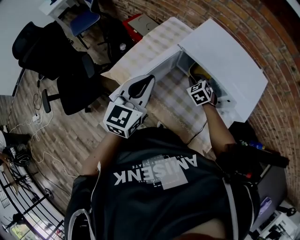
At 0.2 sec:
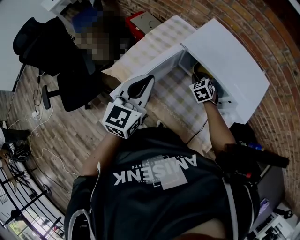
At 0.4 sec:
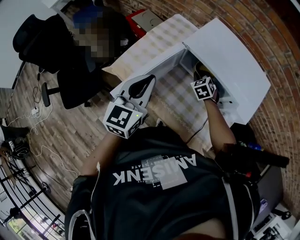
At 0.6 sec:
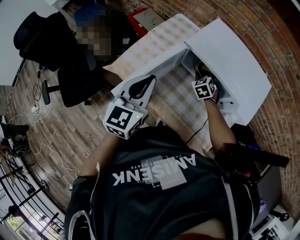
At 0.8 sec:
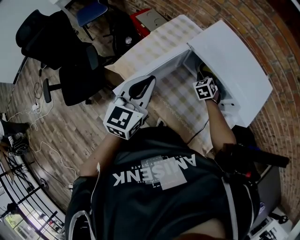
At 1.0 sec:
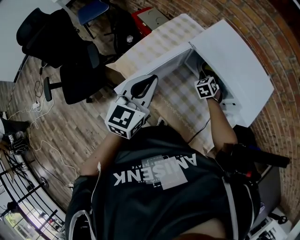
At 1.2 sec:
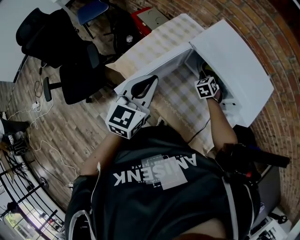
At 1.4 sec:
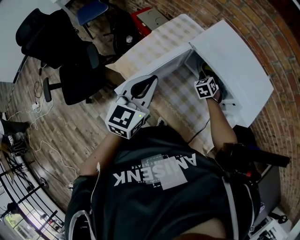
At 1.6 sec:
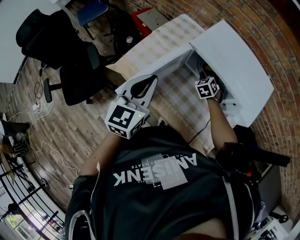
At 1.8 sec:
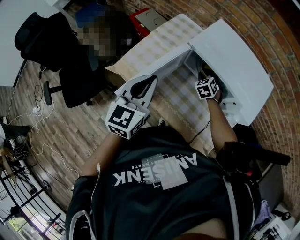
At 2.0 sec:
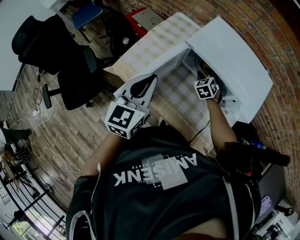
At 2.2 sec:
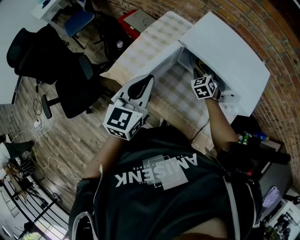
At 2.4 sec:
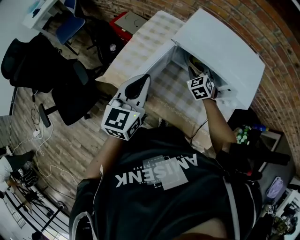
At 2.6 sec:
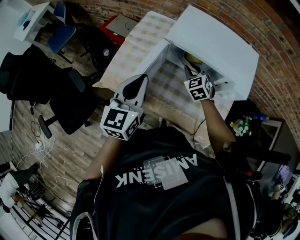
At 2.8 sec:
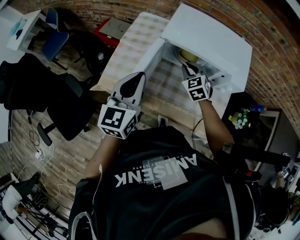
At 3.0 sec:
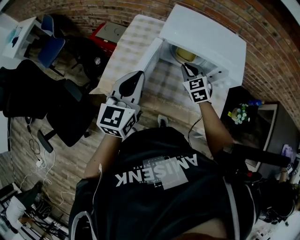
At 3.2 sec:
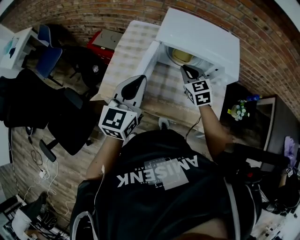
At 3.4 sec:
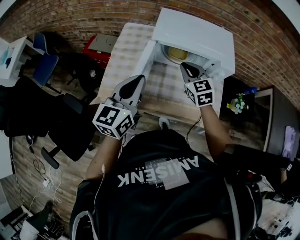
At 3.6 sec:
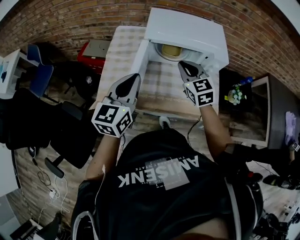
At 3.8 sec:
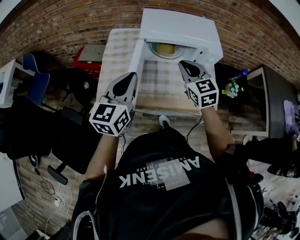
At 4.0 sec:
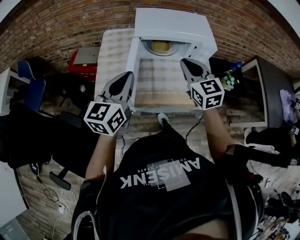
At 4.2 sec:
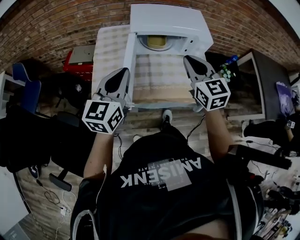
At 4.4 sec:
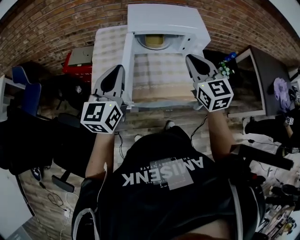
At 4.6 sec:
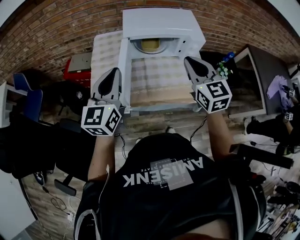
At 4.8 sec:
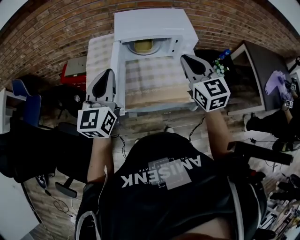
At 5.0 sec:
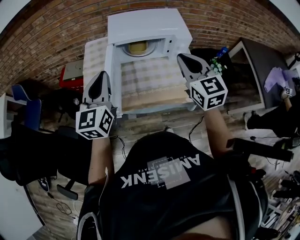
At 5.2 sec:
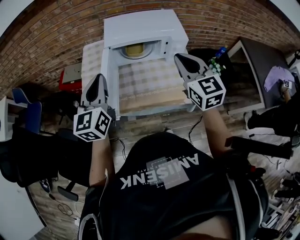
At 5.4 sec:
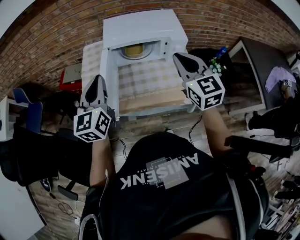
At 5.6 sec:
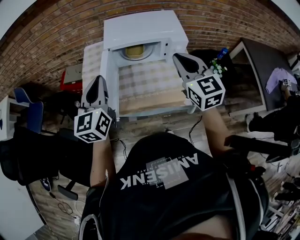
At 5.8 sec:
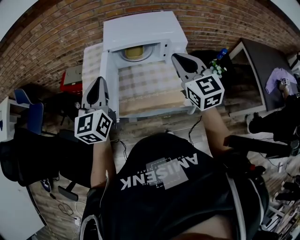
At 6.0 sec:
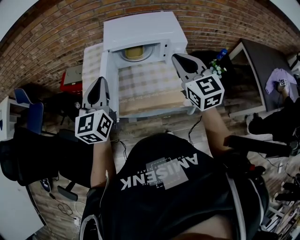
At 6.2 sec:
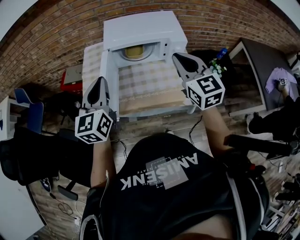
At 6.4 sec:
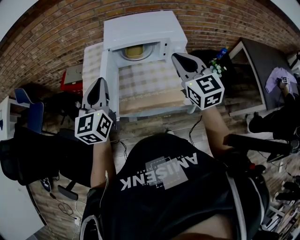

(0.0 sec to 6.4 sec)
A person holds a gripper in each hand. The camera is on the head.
0.0 sec - 1.6 sec: The right gripper ends up some 5 cm from where it was.
1.6 sec - 3.2 sec: The right gripper moves upward and backward, approximately 20 cm, changes its angle by approximately 30 degrees, and opens and closes again. Meanwhile the left gripper changes its angle by approximately 20 degrees.
3.2 sec - 4.8 sec: The left gripper moves upward, some 5 cm; the right gripper shifts roughly 25 cm upward, backward and to the right, and turns by some 30 degrees.
4.8 sec - 6.4 sec: There are only small adjustments of the grippers.

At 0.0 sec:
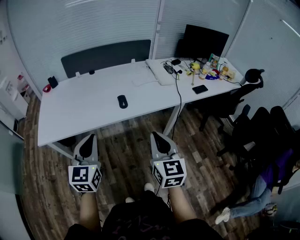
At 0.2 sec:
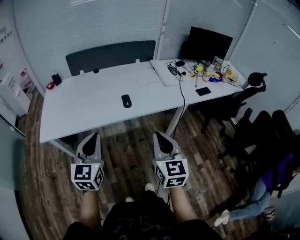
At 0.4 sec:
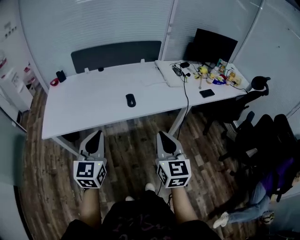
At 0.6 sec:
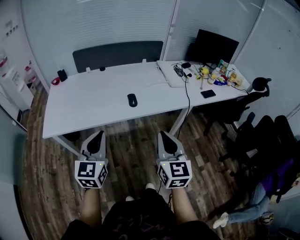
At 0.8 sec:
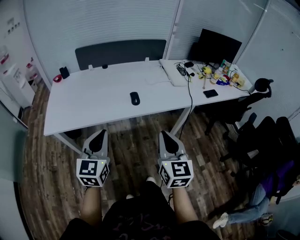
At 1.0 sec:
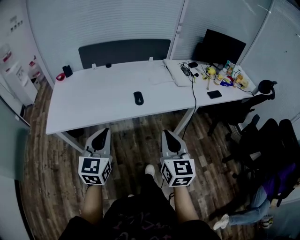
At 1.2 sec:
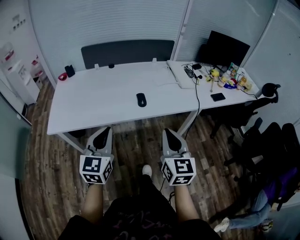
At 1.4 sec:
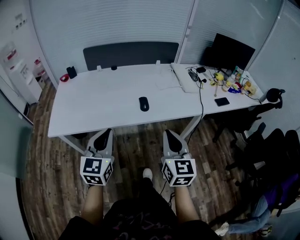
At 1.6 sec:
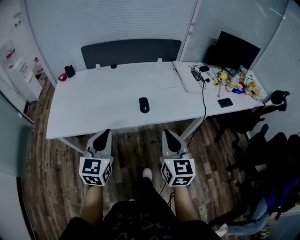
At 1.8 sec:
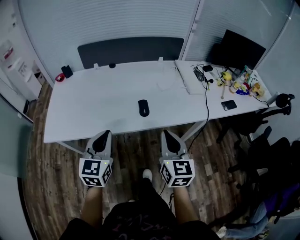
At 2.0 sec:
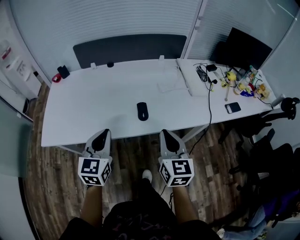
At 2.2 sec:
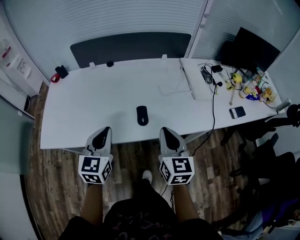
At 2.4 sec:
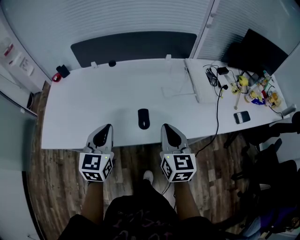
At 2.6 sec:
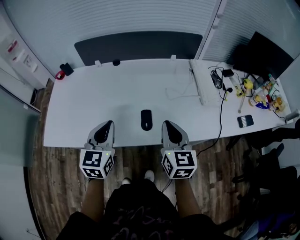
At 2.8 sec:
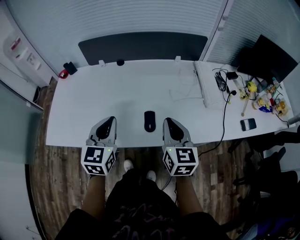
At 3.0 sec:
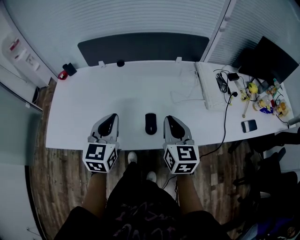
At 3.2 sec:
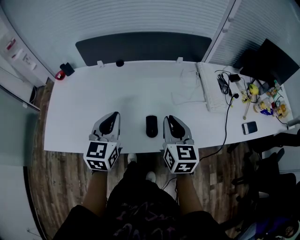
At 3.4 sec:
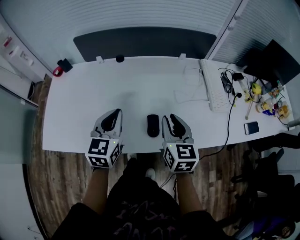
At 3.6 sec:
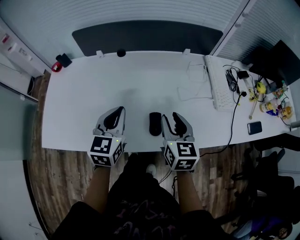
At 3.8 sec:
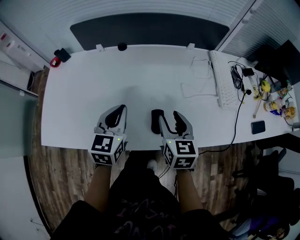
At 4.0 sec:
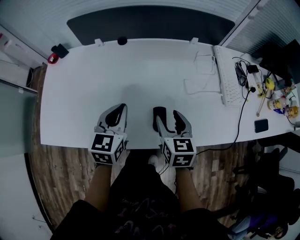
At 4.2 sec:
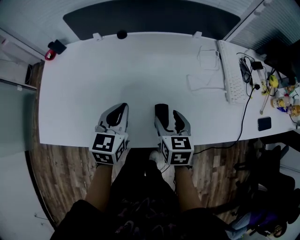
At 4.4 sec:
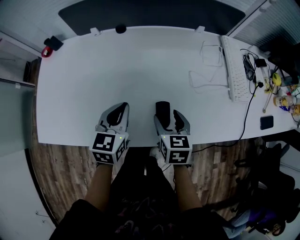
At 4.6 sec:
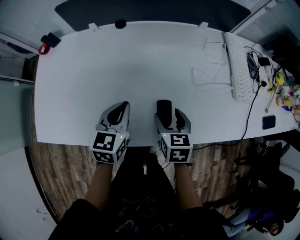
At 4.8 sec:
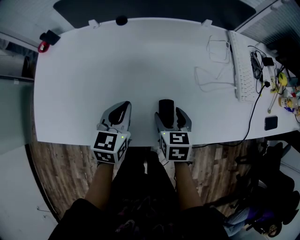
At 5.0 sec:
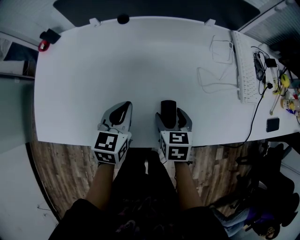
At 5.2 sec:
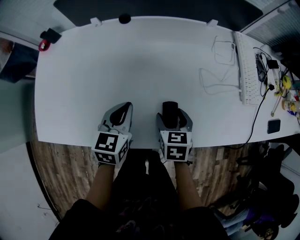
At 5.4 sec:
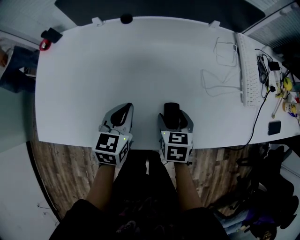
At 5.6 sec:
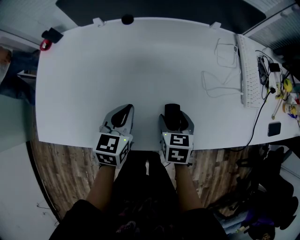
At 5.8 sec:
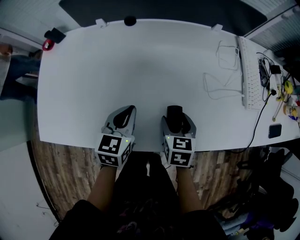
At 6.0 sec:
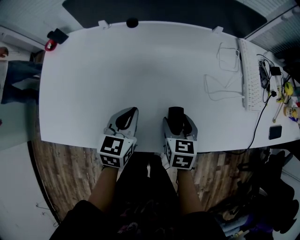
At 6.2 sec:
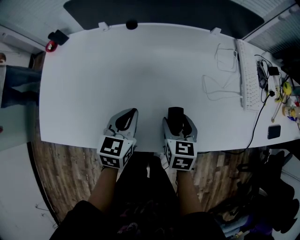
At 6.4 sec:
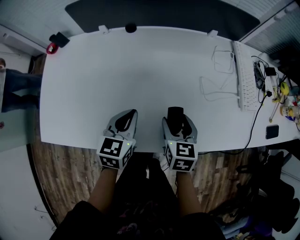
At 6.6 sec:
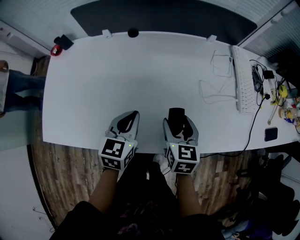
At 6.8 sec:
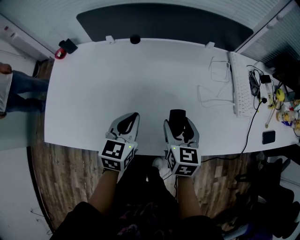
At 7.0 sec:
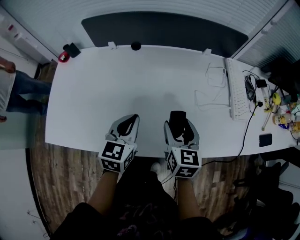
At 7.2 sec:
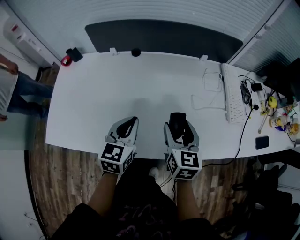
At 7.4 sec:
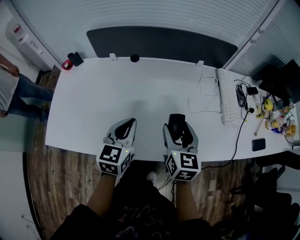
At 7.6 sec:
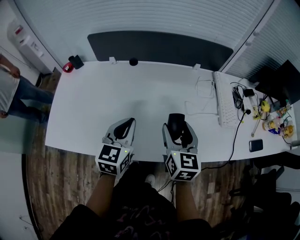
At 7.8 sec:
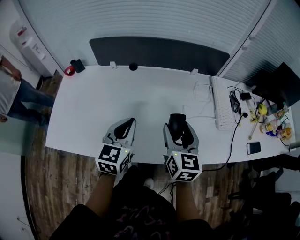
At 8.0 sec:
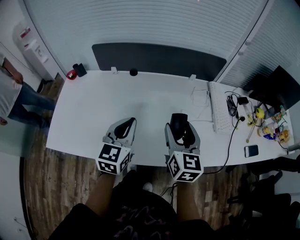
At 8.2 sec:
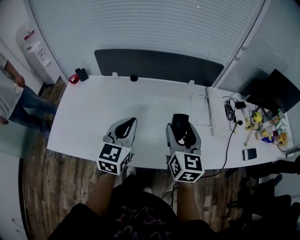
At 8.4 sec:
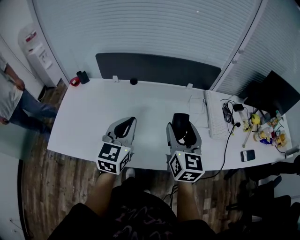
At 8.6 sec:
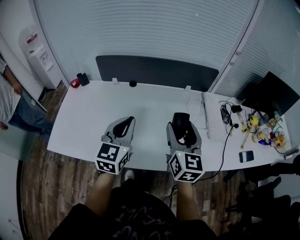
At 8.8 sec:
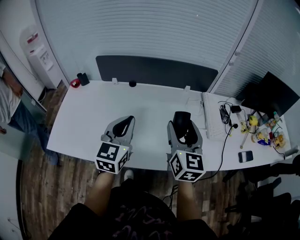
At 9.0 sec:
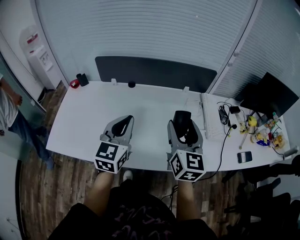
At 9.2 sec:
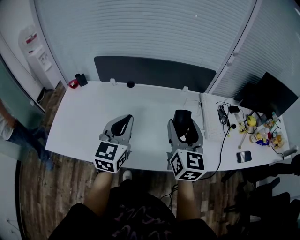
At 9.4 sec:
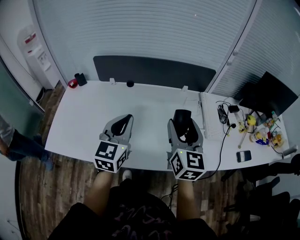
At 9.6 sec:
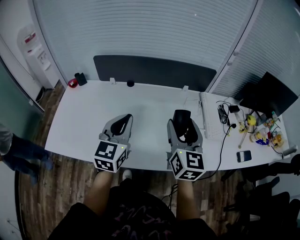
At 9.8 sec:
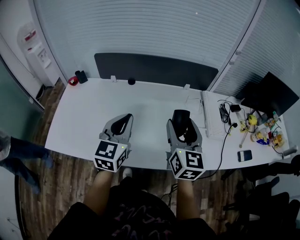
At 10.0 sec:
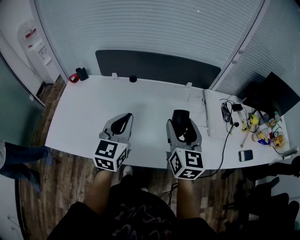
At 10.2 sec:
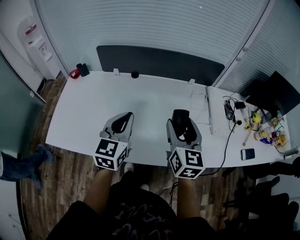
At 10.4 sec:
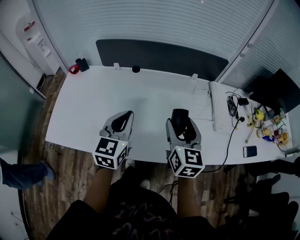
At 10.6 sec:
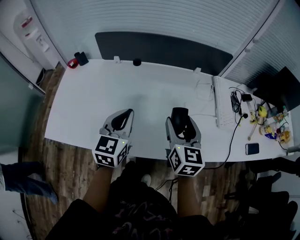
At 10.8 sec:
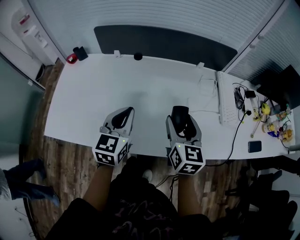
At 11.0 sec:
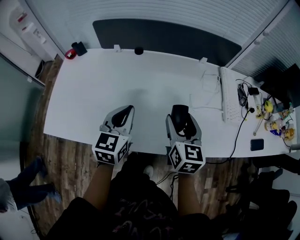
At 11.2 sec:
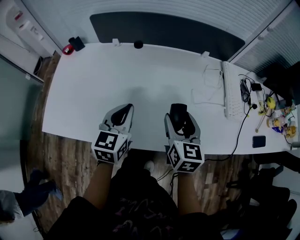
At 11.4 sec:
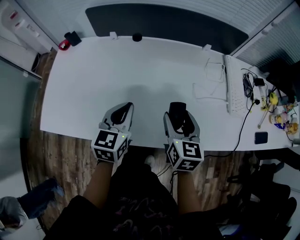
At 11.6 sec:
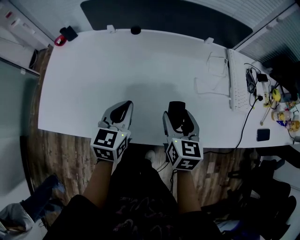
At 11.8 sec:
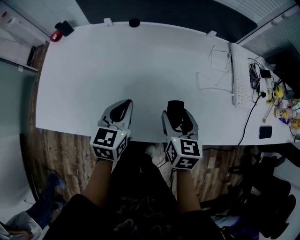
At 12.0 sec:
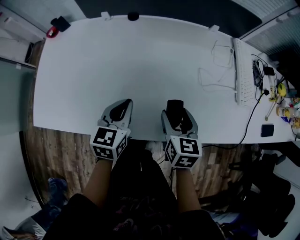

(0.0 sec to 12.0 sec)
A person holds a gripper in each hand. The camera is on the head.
0.0 sec - 1.6 sec: The grippers both shift forward by about 10 cm.
1.6 sec - 3.0 sec: Both grippers travel together forward, about 30 cm.
3.0 sec - 4.4 sec: The right gripper moves downward, approximately 20 cm, rotates about 30 degrees, and opens up. Meanwhile the left gripper goes some 15 cm downward and forward.
4.4 sec - 6.0 sec: The grippers make only small movements.
6.0 sec - 7.6 sec: Both grippers travel together upward, some 15 cm. The right gripper changes its angle by roughly 30 degrees.
7.6 sec - 9.0 sec: The grippers both shift upward by some 10 cm.
9.0 sec - 10.4 sec: Both grippers move downward, roughly 5 cm.
10.4 sec - 12.0 sec: The two grippers go roughly 20 cm downward. The left gripper changes its angle by roughly 20 degrees, while the right gripper changes its angle by approximately 30 degrees.

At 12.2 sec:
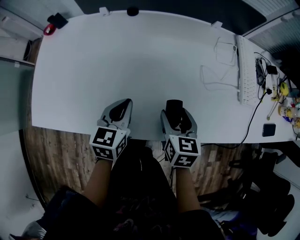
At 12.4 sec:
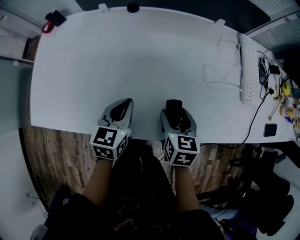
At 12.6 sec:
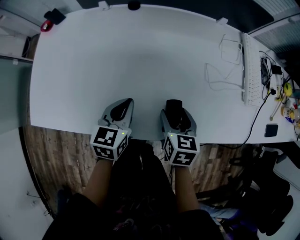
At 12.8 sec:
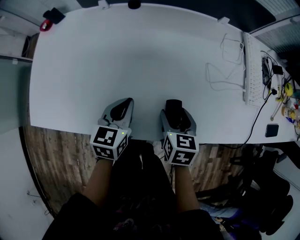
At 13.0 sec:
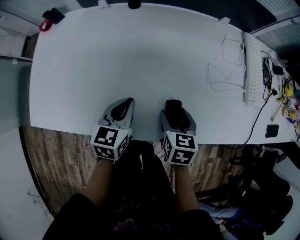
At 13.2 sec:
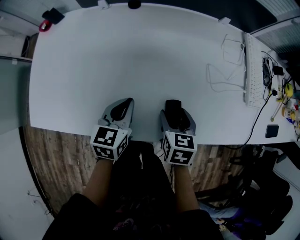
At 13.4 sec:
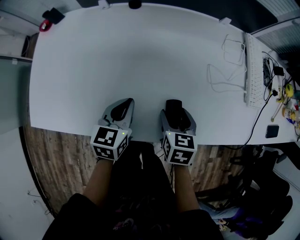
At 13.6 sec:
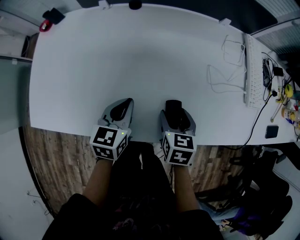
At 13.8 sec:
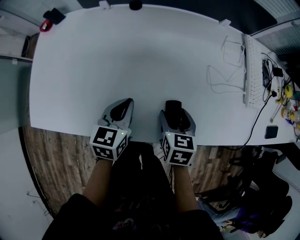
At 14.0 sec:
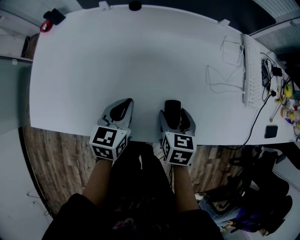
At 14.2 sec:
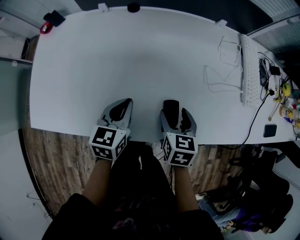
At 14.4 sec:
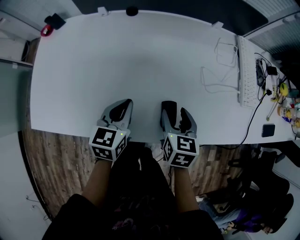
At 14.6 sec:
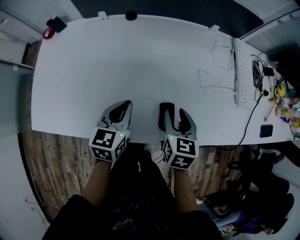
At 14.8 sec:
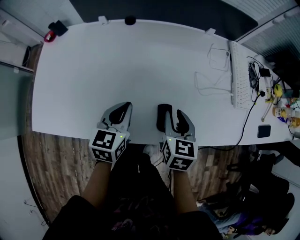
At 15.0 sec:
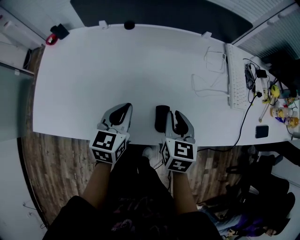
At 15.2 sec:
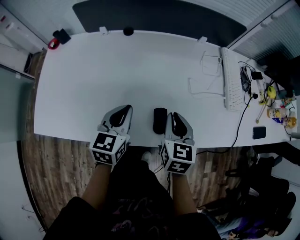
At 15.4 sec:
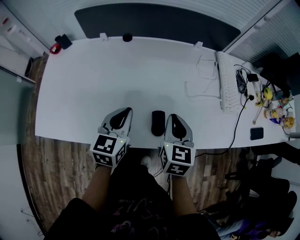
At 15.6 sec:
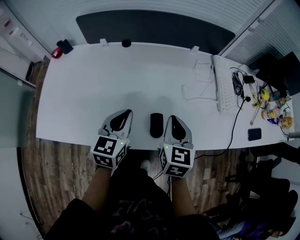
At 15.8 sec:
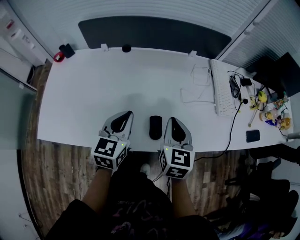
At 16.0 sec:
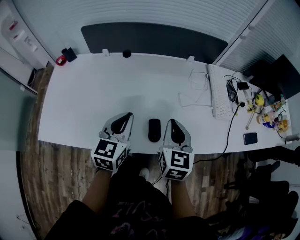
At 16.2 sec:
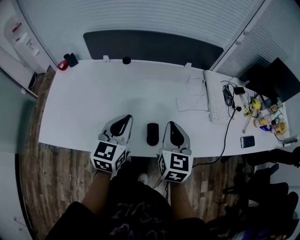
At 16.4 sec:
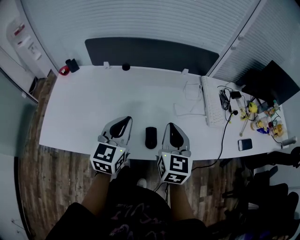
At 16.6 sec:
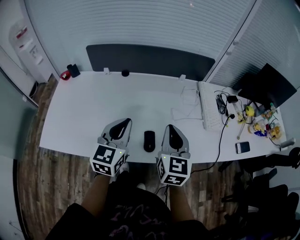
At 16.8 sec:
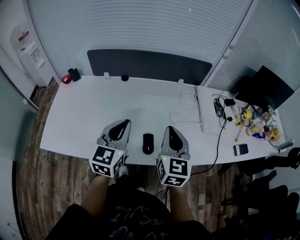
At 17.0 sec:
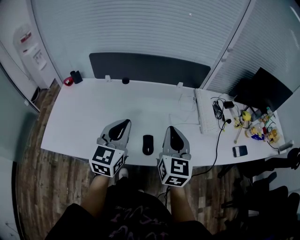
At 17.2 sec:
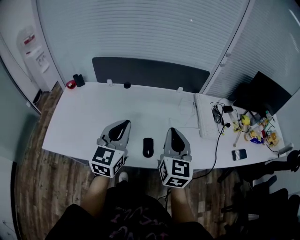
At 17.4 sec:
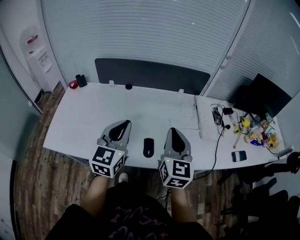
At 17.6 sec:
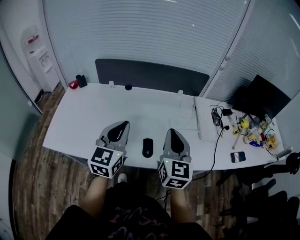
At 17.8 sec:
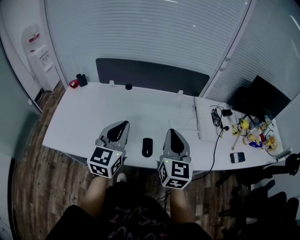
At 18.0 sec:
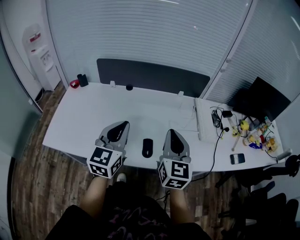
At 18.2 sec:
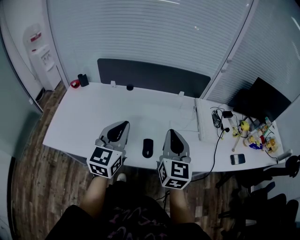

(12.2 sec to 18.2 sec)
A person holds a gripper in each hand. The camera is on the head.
12.2 sec - 13.8 sec: There are only small adjustments of the grippers.
13.8 sec - 15.2 sec: Both grippers move upward, some 10 cm. The right gripper closes up.
15.2 sec - 16.6 sec: Both grippers move upward, about 15 cm. The right gripper turns by approximately 20 degrees.
16.6 sec - 18.2 sec: The two grippers go some 5 cm upward.
